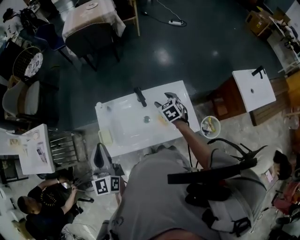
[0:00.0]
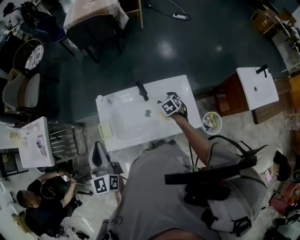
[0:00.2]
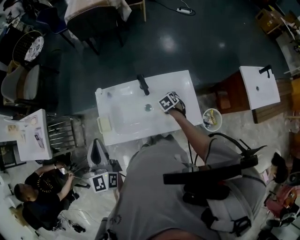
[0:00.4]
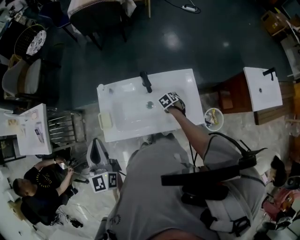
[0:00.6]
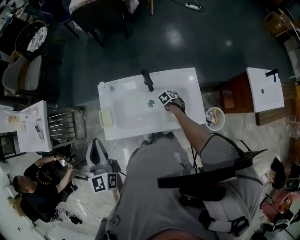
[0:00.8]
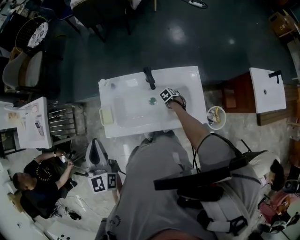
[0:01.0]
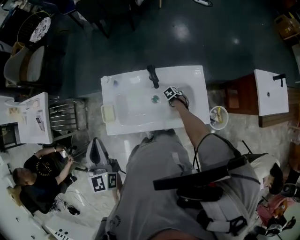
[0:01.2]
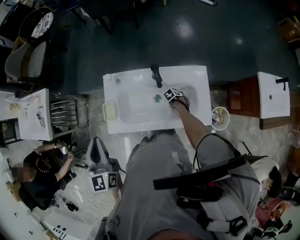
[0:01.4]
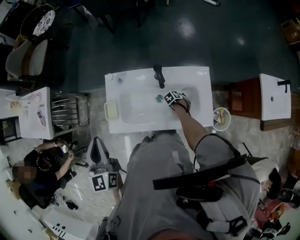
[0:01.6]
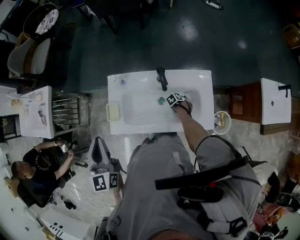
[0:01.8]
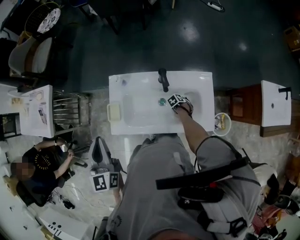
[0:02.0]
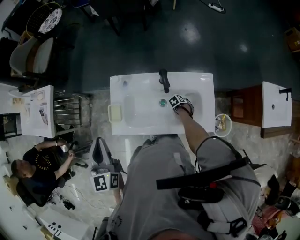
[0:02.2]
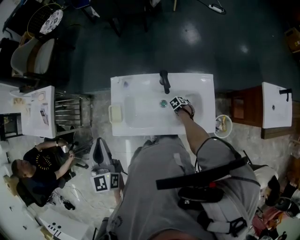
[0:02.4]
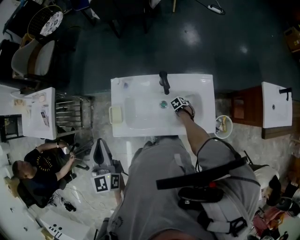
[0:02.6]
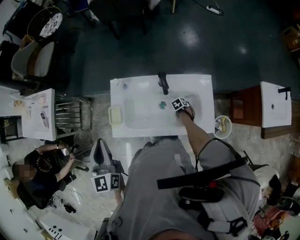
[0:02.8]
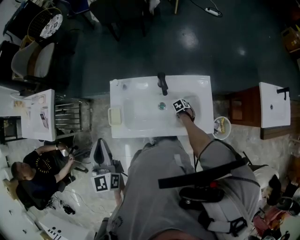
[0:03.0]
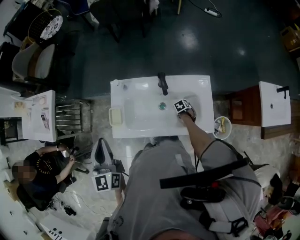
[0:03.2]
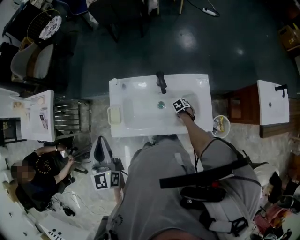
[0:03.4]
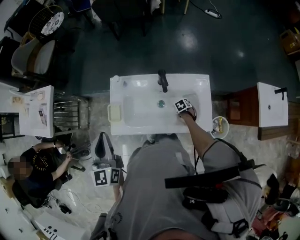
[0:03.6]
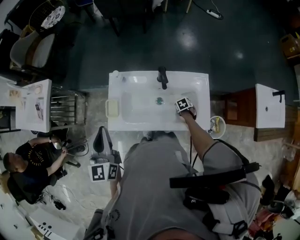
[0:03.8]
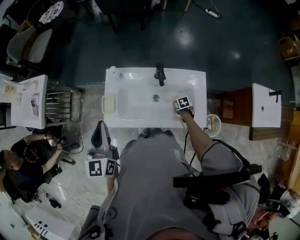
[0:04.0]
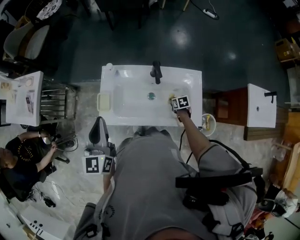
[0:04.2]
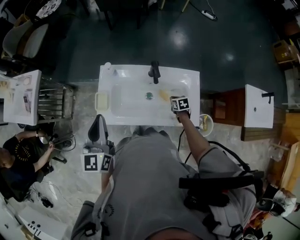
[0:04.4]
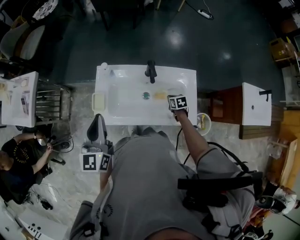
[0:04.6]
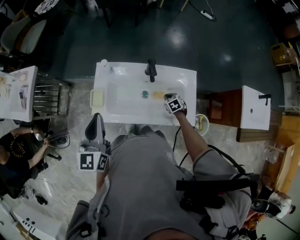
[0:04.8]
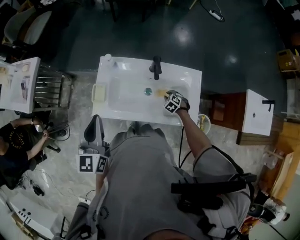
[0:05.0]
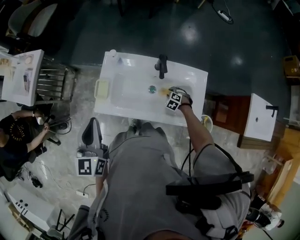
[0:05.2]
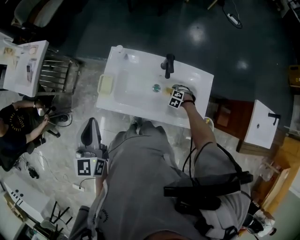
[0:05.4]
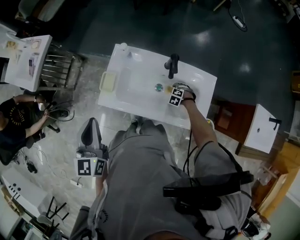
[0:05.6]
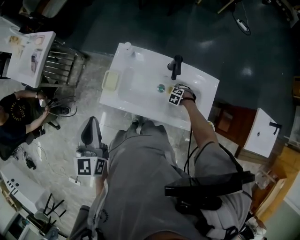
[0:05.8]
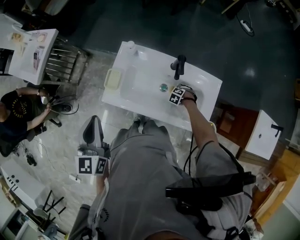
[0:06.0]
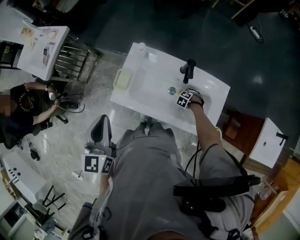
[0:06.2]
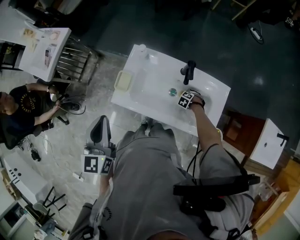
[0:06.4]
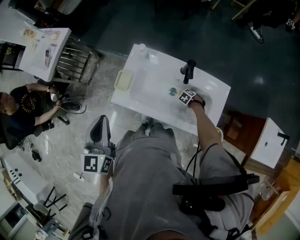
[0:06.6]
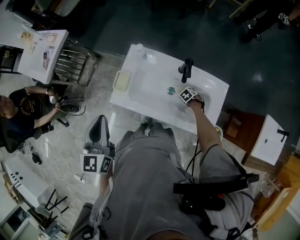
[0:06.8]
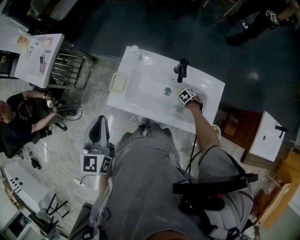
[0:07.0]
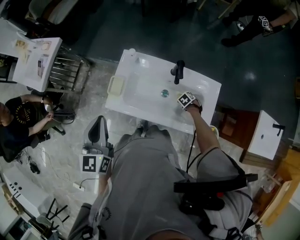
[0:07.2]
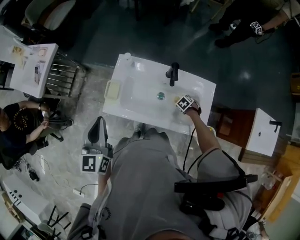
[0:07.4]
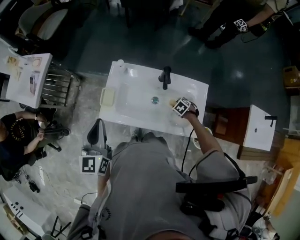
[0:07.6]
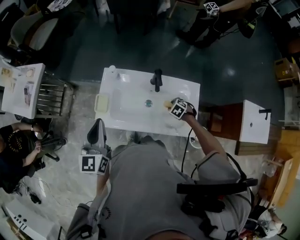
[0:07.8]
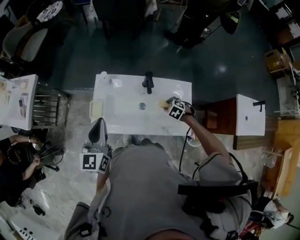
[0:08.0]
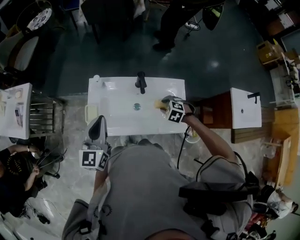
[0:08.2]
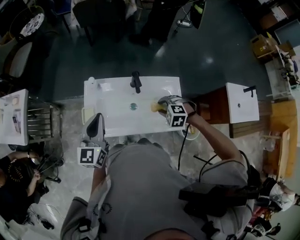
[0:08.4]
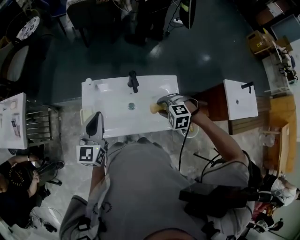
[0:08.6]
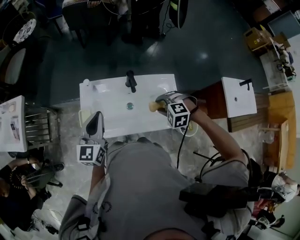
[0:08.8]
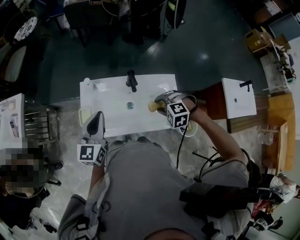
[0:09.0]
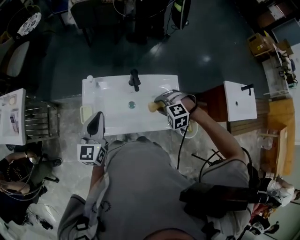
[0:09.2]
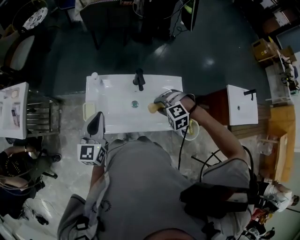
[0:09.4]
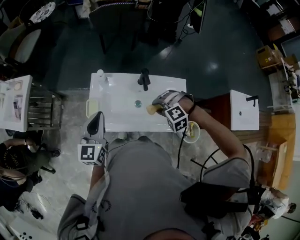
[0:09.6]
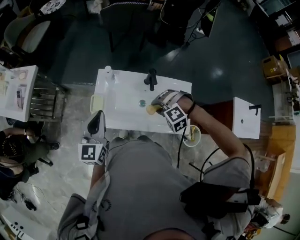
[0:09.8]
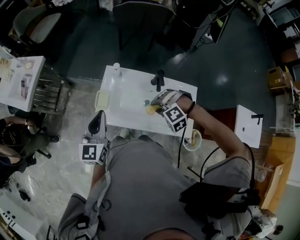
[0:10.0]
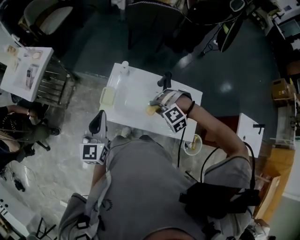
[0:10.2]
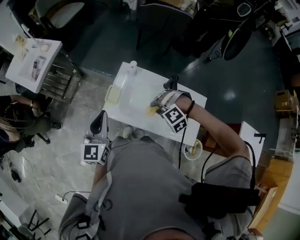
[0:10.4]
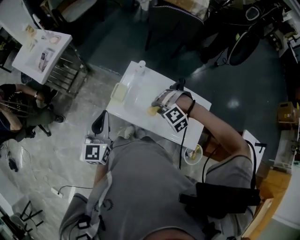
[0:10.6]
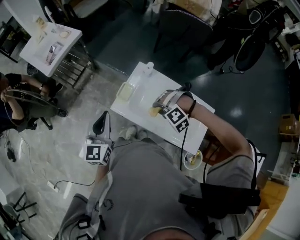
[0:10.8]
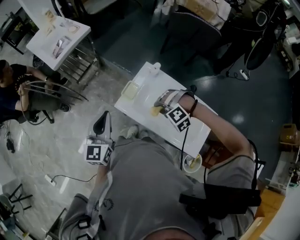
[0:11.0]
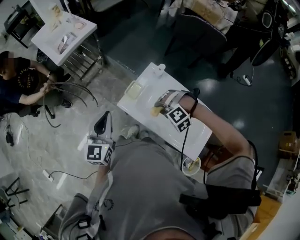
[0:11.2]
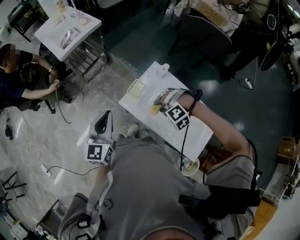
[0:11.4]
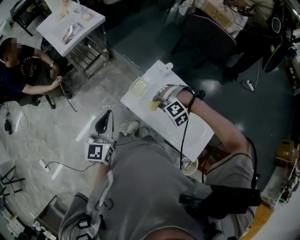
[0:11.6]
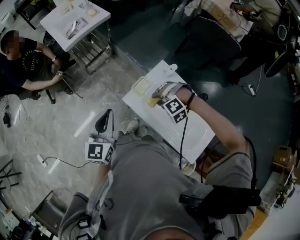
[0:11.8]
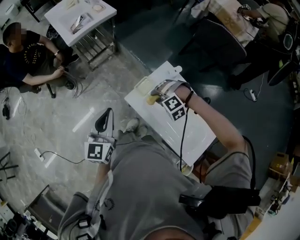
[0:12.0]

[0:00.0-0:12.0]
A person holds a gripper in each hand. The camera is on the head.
0:00.0 to 0:01.6: The left gripper ends up approximately 5 cm from where it was. The right gripper goes approximately 40 cm downward, and tips its fingers downward by approximately 40 degrees.
0:01.6 to 0:03.0: There are only small adjustments of the grippers.
0:03.0 to 0:04.4: The right gripper heads upward, covering roughly 15 cm, rotates some 20 degrees, and closes.
0:04.4 to 0:06.0: The right gripper shifts approximately 15 cm downward, twists approximately 70 degrees counterclockwise, seen from behind, and opens up. The left gripper shifts by roughly 5 cm.
0:06.0 to 0:07.6: The right gripper is displaced upward by approximately 10 cm, and turns by roughly 30 degrees.
0:07.6 to 0:09.0: The left gripper shifts by approximately 10 cm, and swivels about 20 degrees. The right gripper is displaced upward by roughly 25 cm, and swivels some 40 degrees.
0:09.0 to 0:10.4: Both grippers move to the left, approximately 15 cm. The left gripper swivels about 30 degrees, while the right gripper rolls counterclockwise, seen from behind, by some 50 degrees.
0:10.4 to 0:12.0: The left gripper ends up some 10 cm from where it was, and changes its angle by about 20 degrees. Meanwhile the right gripper shifts by approximately 15 cm, and changes its angle by about 20 degrees.

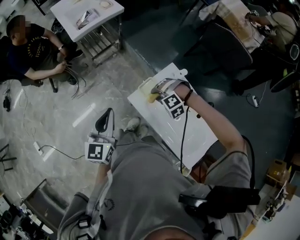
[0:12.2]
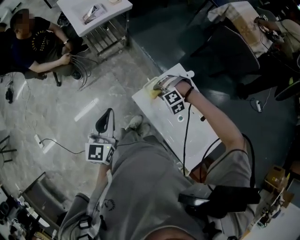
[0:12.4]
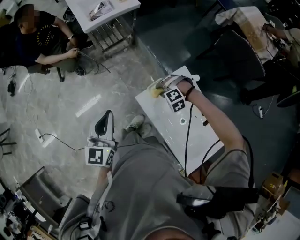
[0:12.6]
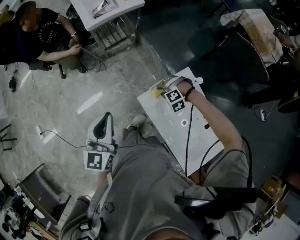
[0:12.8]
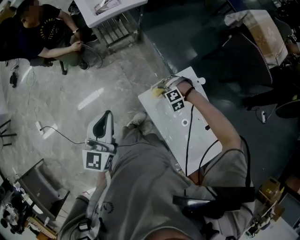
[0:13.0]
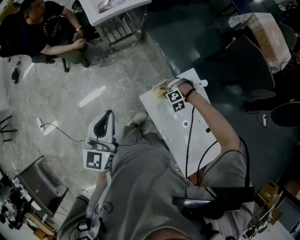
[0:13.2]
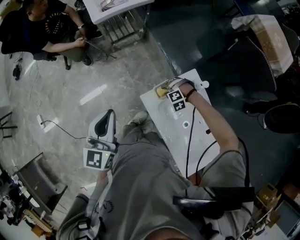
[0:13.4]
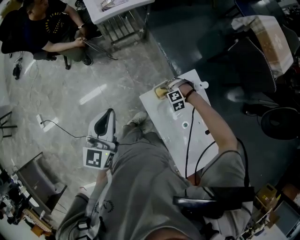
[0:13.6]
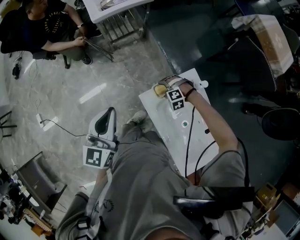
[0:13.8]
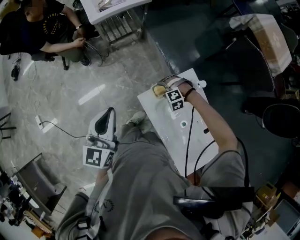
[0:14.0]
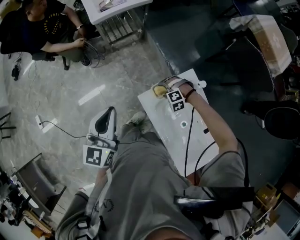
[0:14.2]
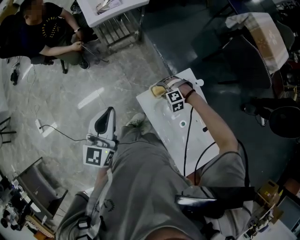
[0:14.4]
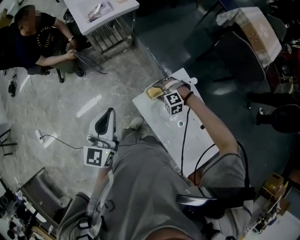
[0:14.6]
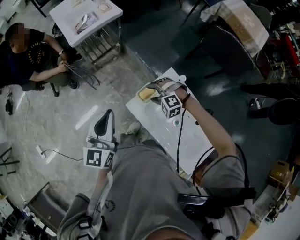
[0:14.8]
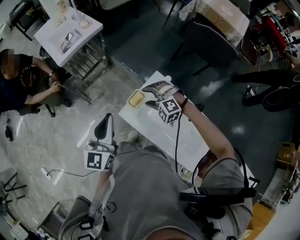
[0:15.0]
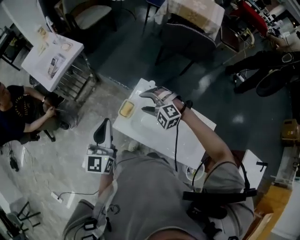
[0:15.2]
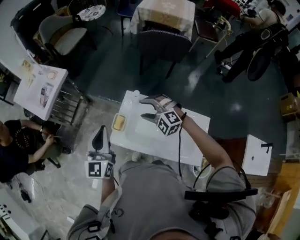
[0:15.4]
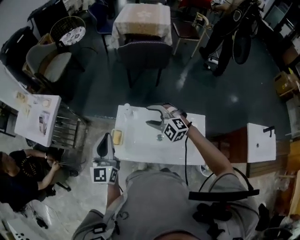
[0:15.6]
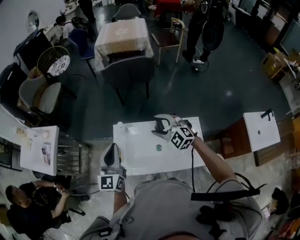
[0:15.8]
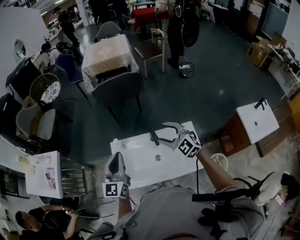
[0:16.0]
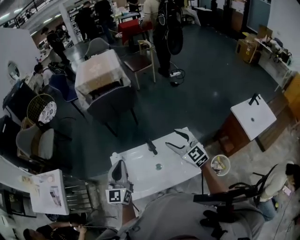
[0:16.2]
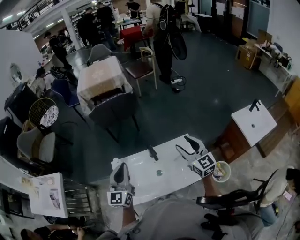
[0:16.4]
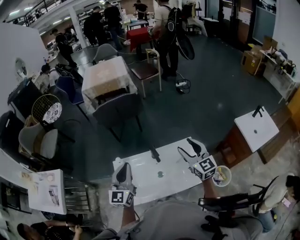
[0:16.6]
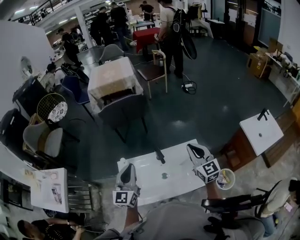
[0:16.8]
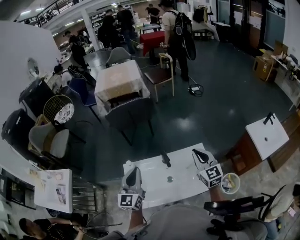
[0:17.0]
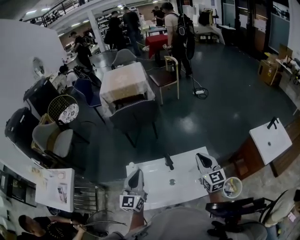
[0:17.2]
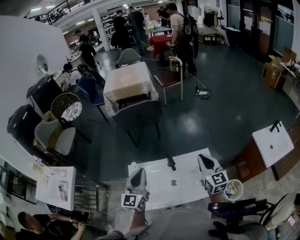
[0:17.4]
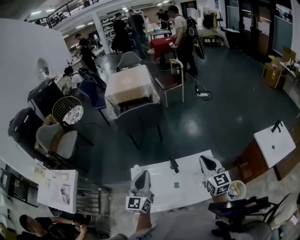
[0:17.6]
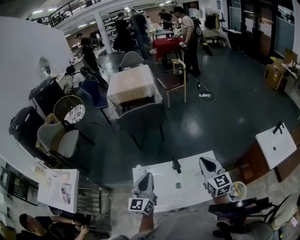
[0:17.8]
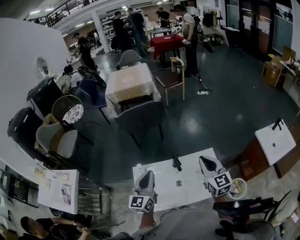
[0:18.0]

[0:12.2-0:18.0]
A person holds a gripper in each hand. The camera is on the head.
0:12.2 to 0:13.6: The right gripper travels downward by roughly 15 cm.
0:13.6 to 0:15.0: The left gripper changes place by approximately 10 cm, and rotates some 20 degrees; the right gripper goes about 20 cm upward, swivels approximately 40 degrees, and opens its fingers.
0:15.0 to 0:16.6: The right gripper shifts by some 50 cm, and tilts its fingers approximately 50 degrees upward. Meanwhile the left gripper shifts by approximately 30 cm, and swivels approximately 50 degrees.
0:16.6 to 0:18.0: The right gripper changes place by approximately 5 cm, and closes up.

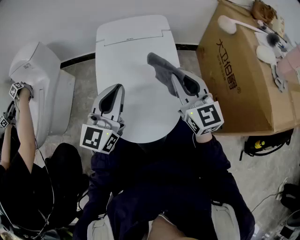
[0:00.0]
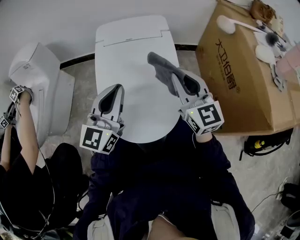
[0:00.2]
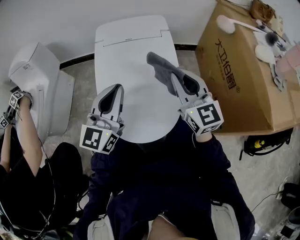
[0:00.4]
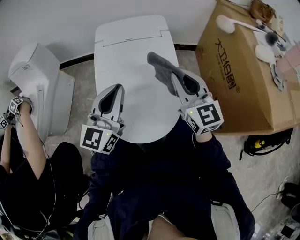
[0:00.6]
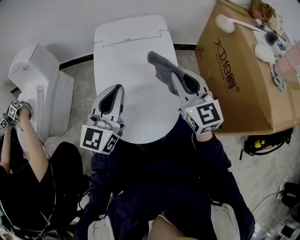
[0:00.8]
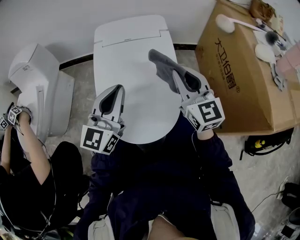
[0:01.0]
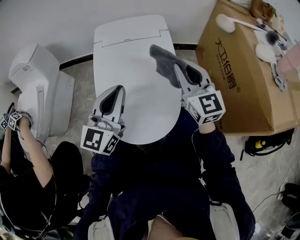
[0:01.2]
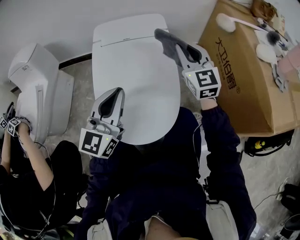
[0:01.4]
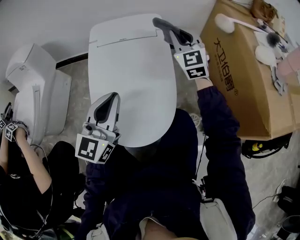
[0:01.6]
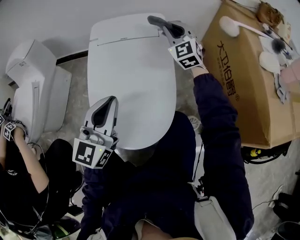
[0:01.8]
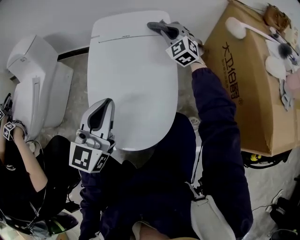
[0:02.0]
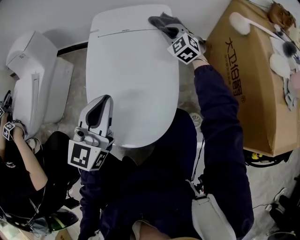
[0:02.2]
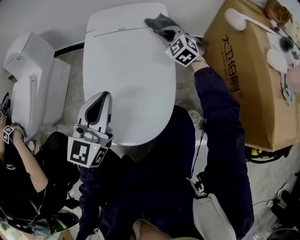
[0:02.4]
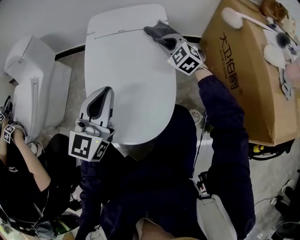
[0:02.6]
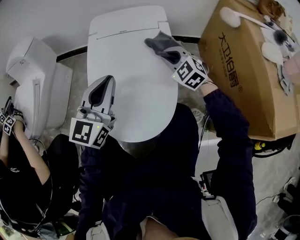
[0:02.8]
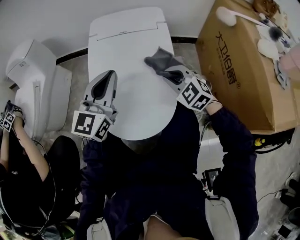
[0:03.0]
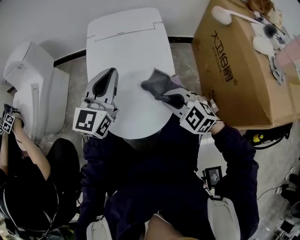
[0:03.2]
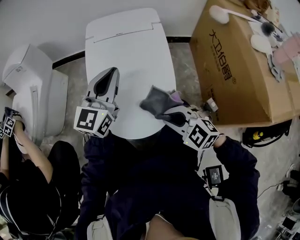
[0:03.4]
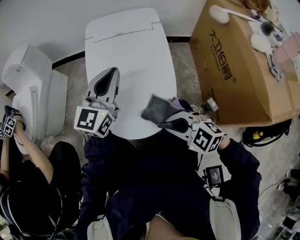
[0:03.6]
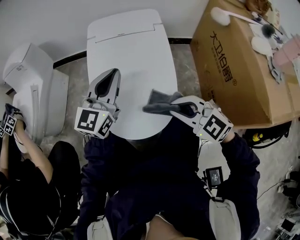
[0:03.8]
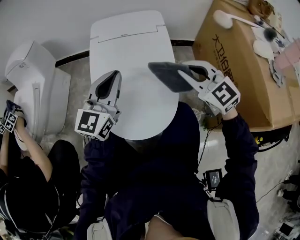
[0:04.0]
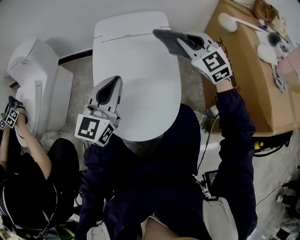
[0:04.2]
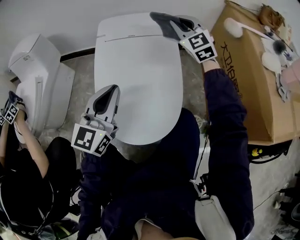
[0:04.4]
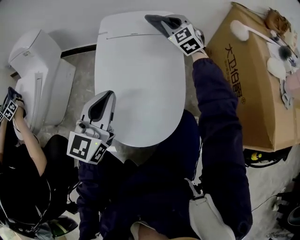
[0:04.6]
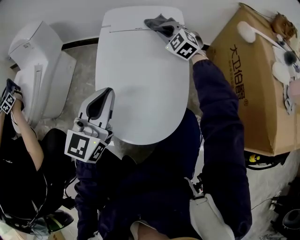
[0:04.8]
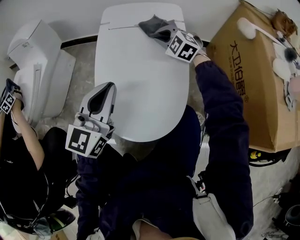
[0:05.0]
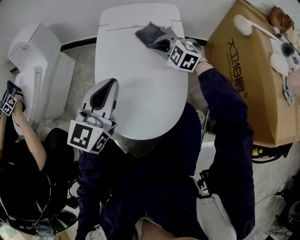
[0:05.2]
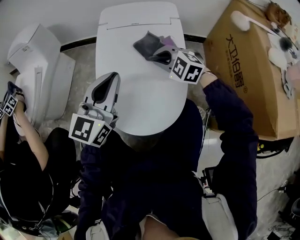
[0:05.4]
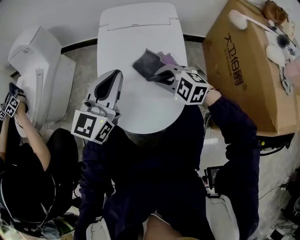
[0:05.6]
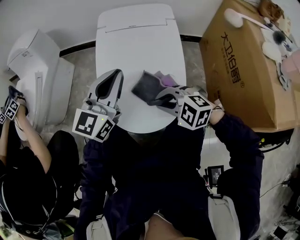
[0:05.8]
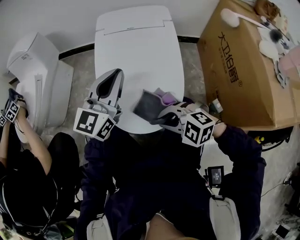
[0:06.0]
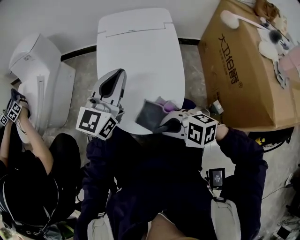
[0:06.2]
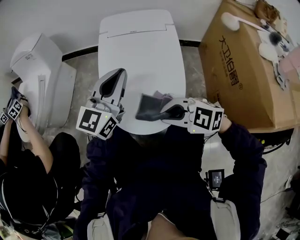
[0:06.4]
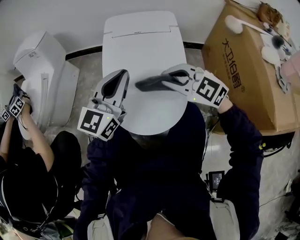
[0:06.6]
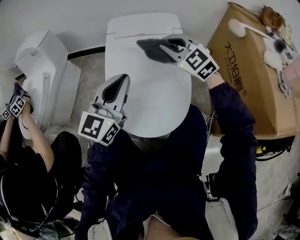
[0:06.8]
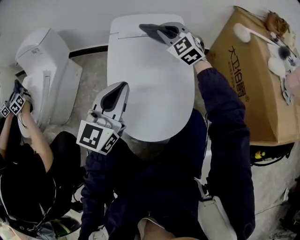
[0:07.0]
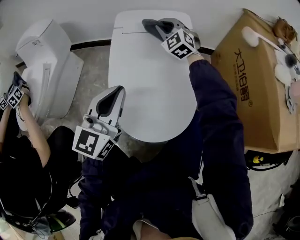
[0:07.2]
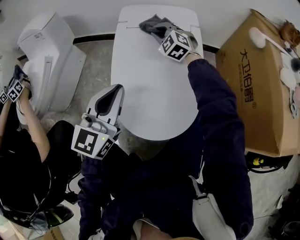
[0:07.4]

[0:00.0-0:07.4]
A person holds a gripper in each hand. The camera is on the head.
0:00.0 to 0:01.4: The right gripper heads forward, covering about 10 cm.
0:01.4 to 0:03.0: The right gripper goes some 15 cm downward, travels forward and back again, approximately 15 cm each way, and angles its fingers downward, by roughly 30 degrees.
0:03.0 to 0:04.4: The right gripper heads forward and upward, covering roughly 25 cm, and swivels about 30 degrees.
0:04.4 to 0:06.0: The right gripper is displaced backward, downward and to the left by approximately 40 cm, and tips its fingers downward by approximately 40 degrees.
0:06.0 to 0:07.4: The right gripper travels upward and back again, some 15 cm each way, and swivels some 40 degrees; the left gripper changes place by roughly 5 cm.